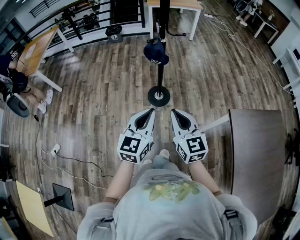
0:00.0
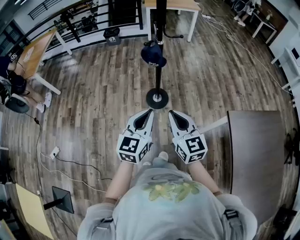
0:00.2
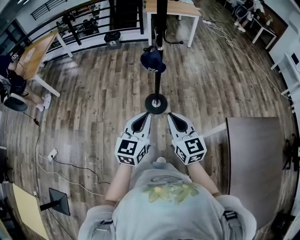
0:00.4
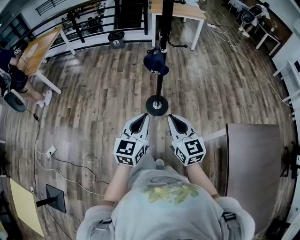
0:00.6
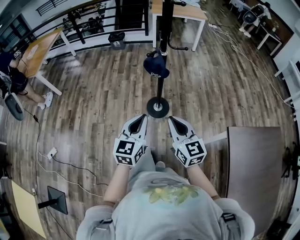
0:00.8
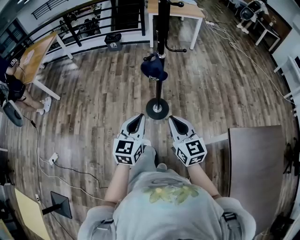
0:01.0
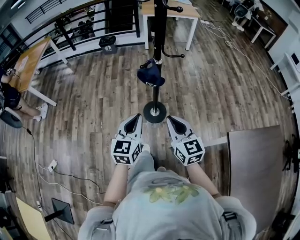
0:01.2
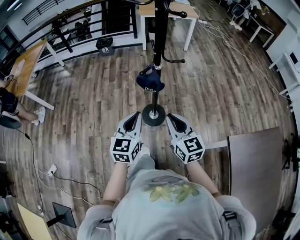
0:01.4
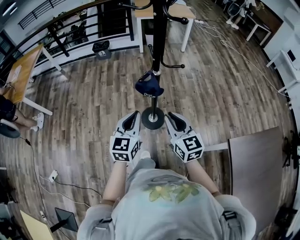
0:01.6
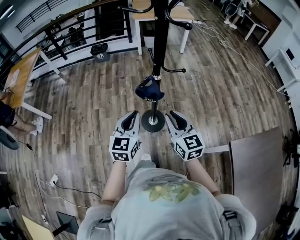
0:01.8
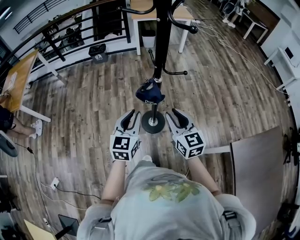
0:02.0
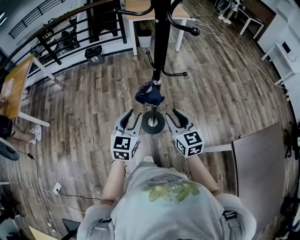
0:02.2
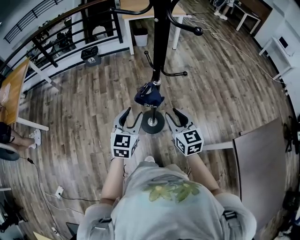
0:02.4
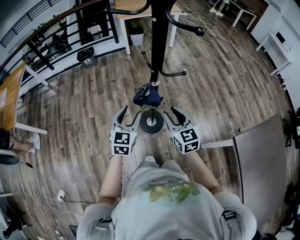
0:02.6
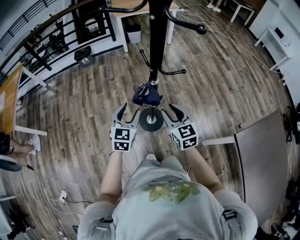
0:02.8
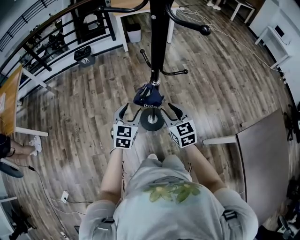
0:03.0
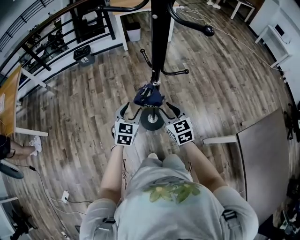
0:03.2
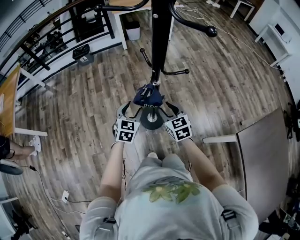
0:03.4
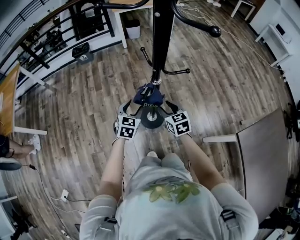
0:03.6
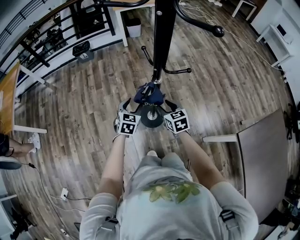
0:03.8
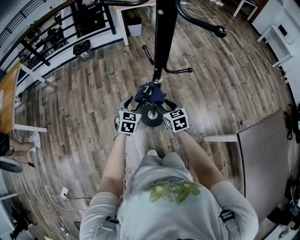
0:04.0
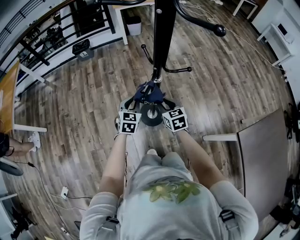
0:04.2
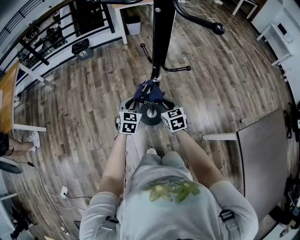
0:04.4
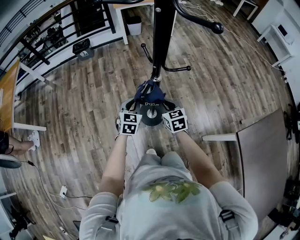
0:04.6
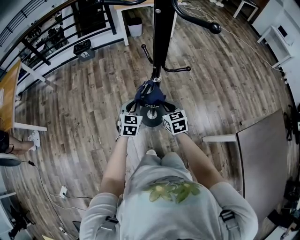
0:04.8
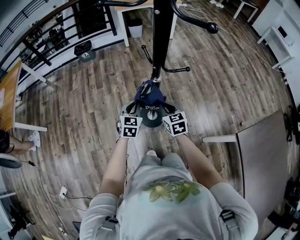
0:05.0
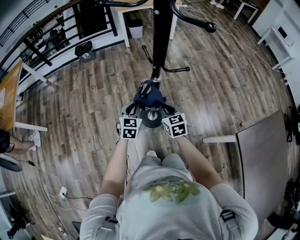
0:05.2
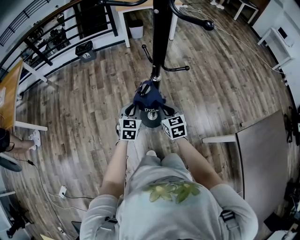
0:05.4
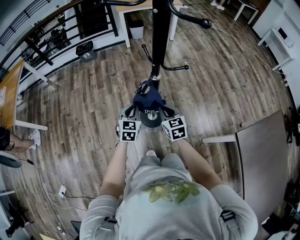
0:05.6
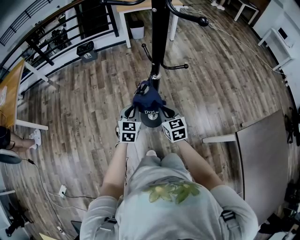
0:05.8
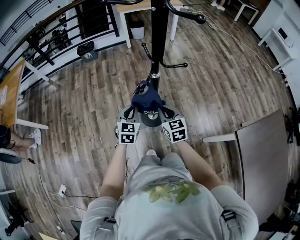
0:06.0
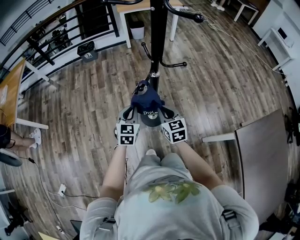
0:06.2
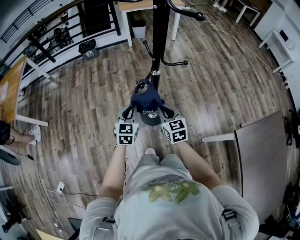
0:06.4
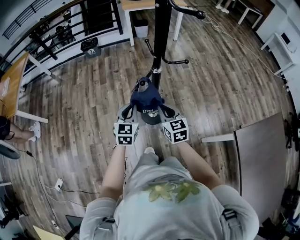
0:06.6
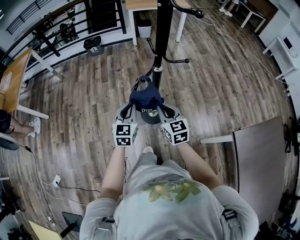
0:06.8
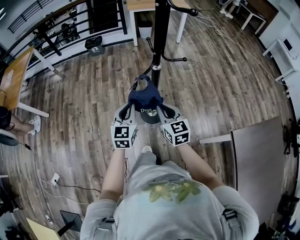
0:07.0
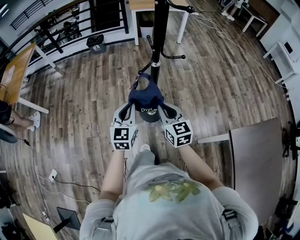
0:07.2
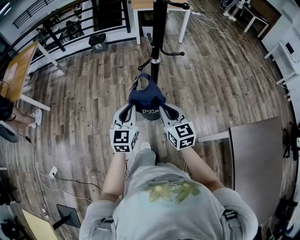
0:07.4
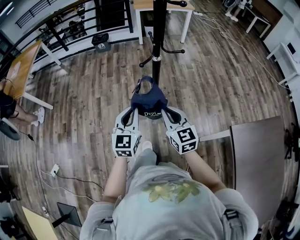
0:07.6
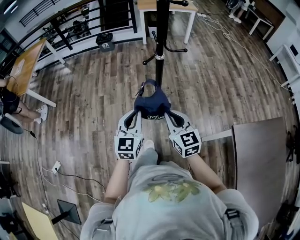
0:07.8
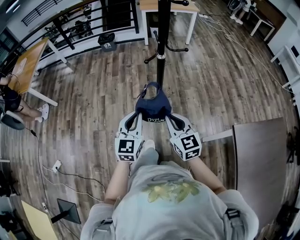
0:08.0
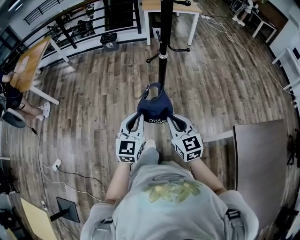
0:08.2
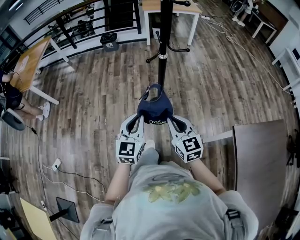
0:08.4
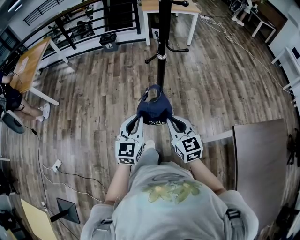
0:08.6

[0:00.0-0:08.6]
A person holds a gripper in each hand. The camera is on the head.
0:00.0 to 0:01.4: The grippers both shift forward by about 20 cm.
0:01.4 to 0:02.8: The two grippers go approximately 20 cm forward and downward. The left gripper opens its fingers; the right gripper opens.
0:02.8 to 0:04.4: The grippers both shift downward and forward by approximately 10 cm. The left gripper closes up.
0:04.4 to 0:05.8: The grippers both shift backward by roughly 5 cm.
0:05.8 to 0:07.2: The left gripper shifts some 15 cm backward and upward. The right gripper moves upward and backward, about 15 cm.
0:07.2 to 0:08.6: The two grippers go some 15 cm backward.

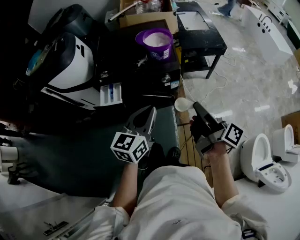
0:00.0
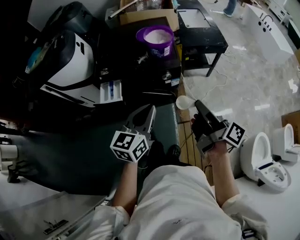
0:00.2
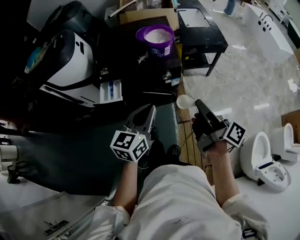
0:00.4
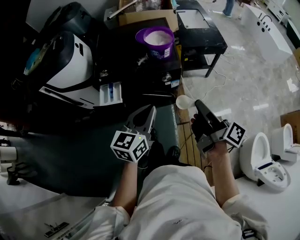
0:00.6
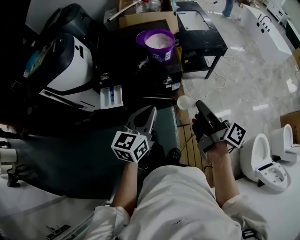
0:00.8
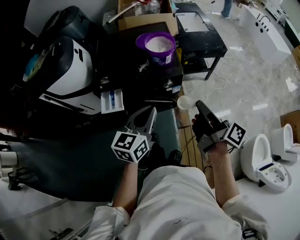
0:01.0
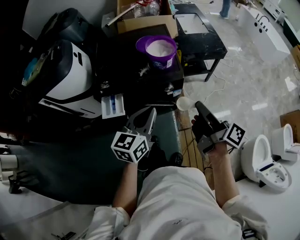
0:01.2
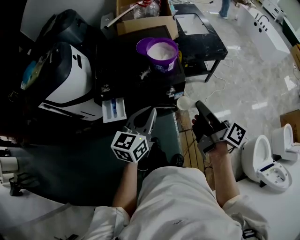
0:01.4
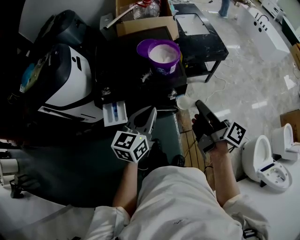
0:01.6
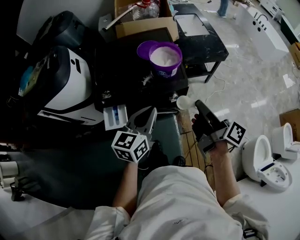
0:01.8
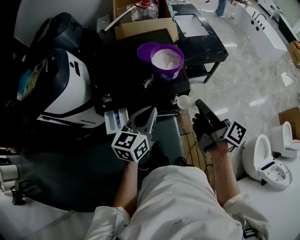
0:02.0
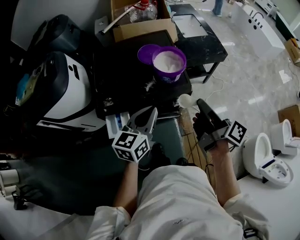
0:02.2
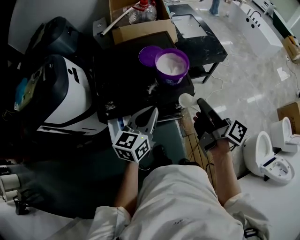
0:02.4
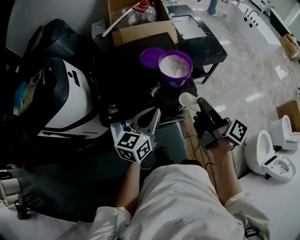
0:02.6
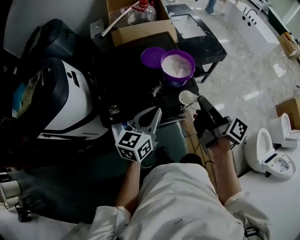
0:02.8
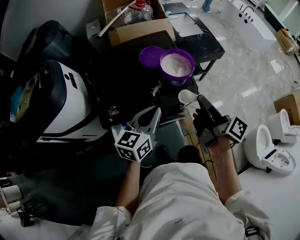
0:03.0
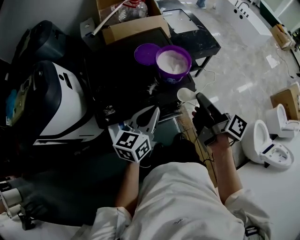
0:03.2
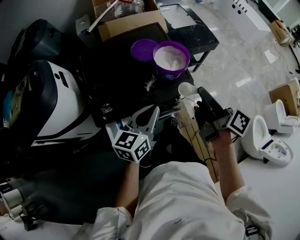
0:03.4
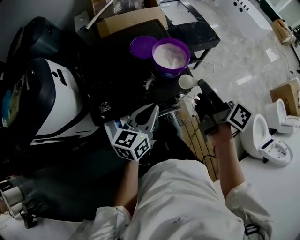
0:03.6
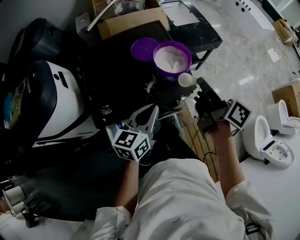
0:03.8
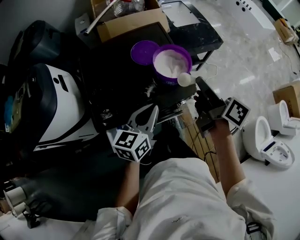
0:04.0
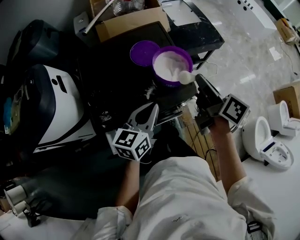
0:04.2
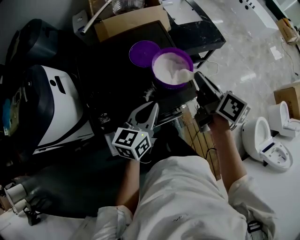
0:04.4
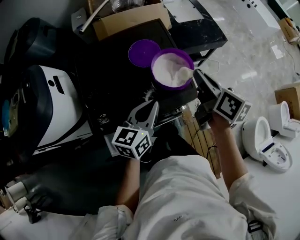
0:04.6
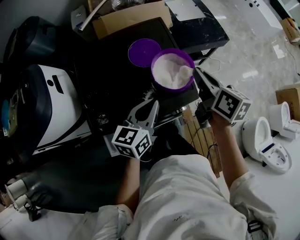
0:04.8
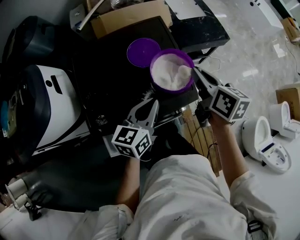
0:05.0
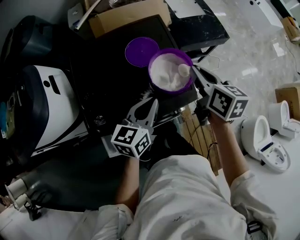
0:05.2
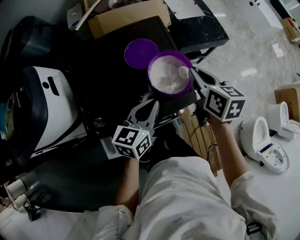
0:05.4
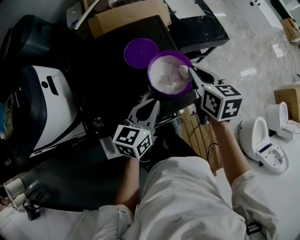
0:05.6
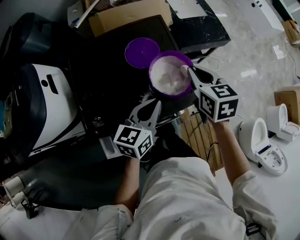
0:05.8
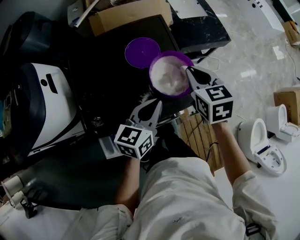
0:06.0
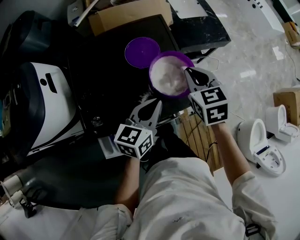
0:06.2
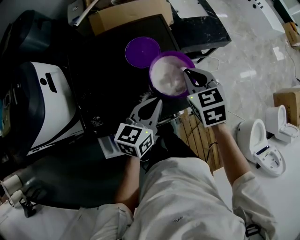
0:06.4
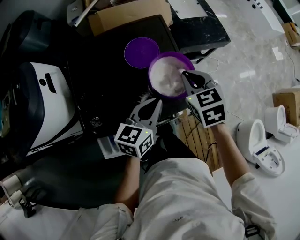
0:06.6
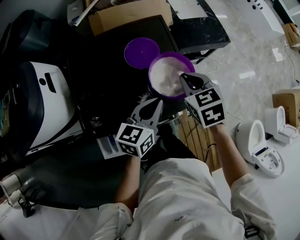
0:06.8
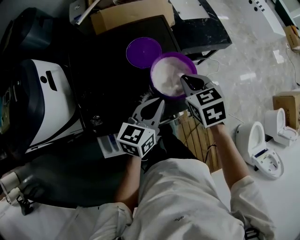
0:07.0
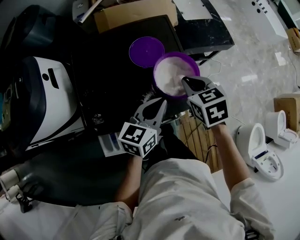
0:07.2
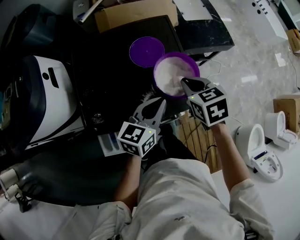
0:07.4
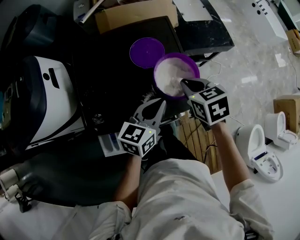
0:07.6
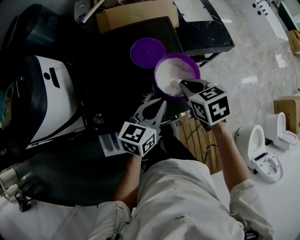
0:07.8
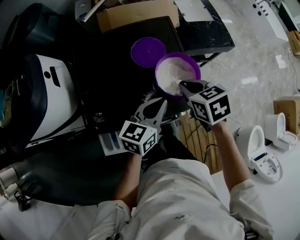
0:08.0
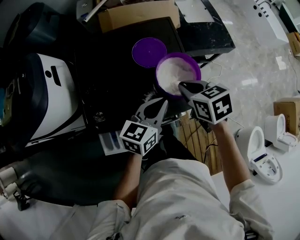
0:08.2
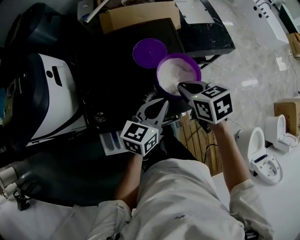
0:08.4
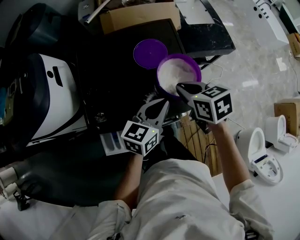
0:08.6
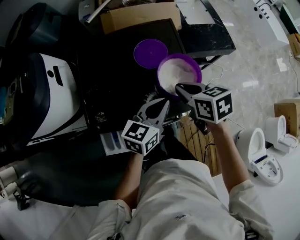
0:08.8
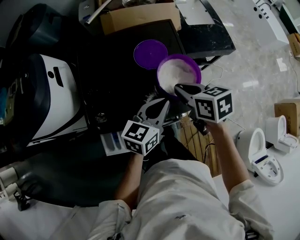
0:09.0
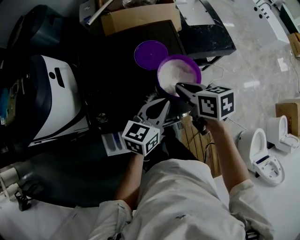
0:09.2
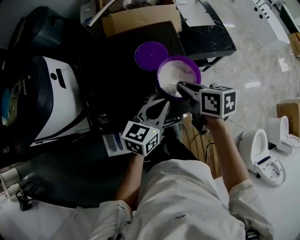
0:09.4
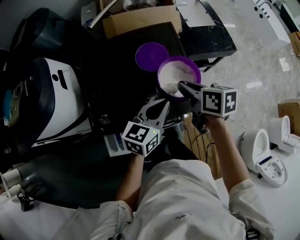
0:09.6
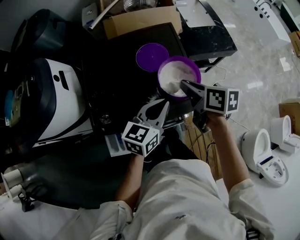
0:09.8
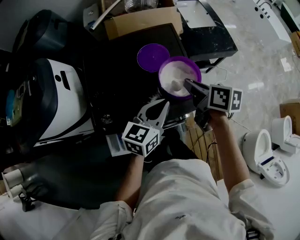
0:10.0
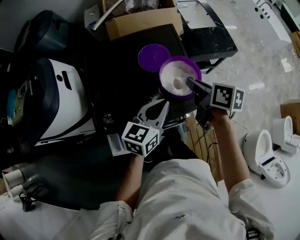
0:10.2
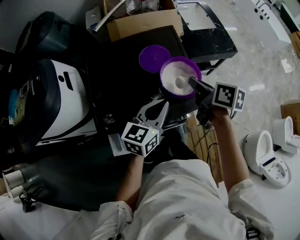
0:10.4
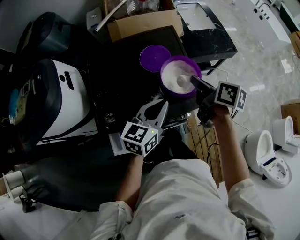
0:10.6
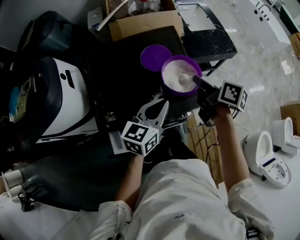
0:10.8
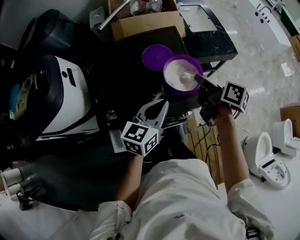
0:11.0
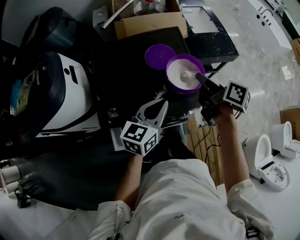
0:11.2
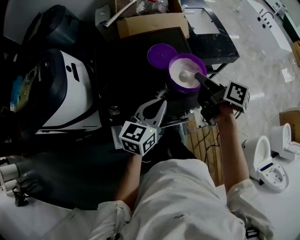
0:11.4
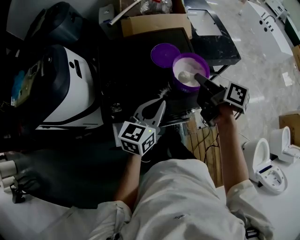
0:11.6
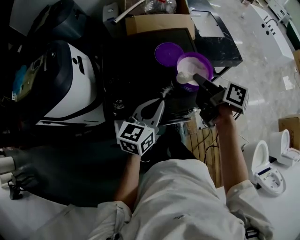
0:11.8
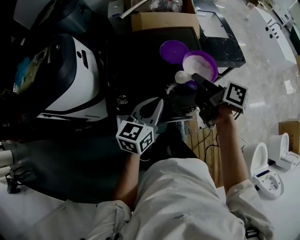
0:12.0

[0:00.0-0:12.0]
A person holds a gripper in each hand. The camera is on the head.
0:00.0 to 0:01.6: The two grippers go some 10 cm forward.
0:01.6 to 0:03.0: The right gripper goes about 10 cm to the left and forward; the left gripper travels forward and to the left by approximately 10 cm.
0:03.0 to 0:04.4: The right gripper shifts approximately 15 cm forward, and swivels roughly 30 degrees. The left gripper heads forward, covering roughly 10 cm.
0:04.4 to 0:06.0: The right gripper shifts approximately 10 cm forward and downward, and rolls counterclockwise, seen from behind, by about 50 degrees. The left gripper moves forward, some 5 cm.
0:06.0 to 0:07.6: The right gripper shifts by roughly 5 cm.
0:07.6 to 0:09.0: There are only small adjustments of the grippers.
0:09.0 to 0:10.4: The right gripper travels to the right by approximately 5 cm, and swivels some 30 degrees.
0:10.4 to 0:12.0: The right gripper goes roughly 10 cm to the left, backward and upward, while the left gripper moves to the left and backward, some 10 cm.

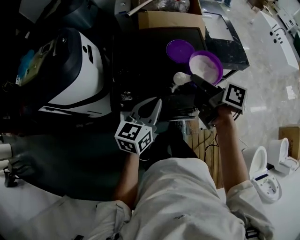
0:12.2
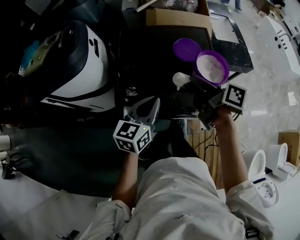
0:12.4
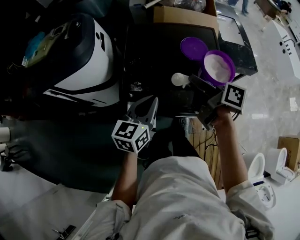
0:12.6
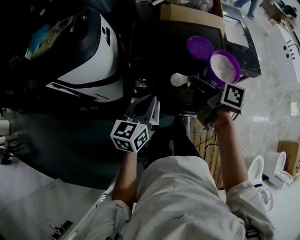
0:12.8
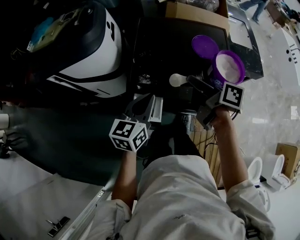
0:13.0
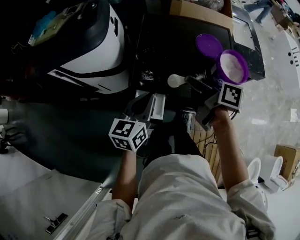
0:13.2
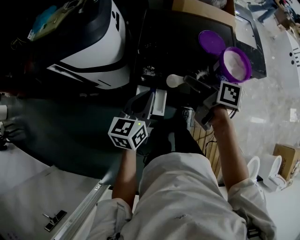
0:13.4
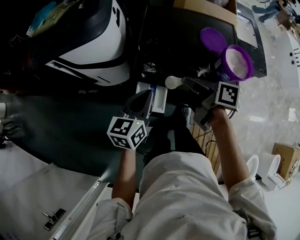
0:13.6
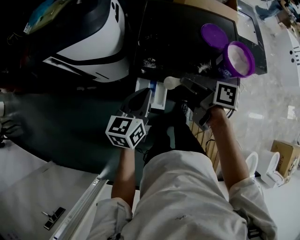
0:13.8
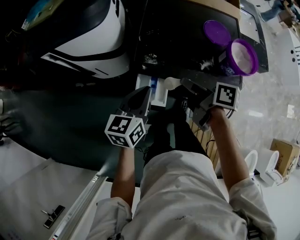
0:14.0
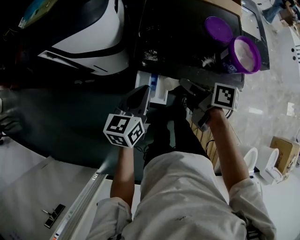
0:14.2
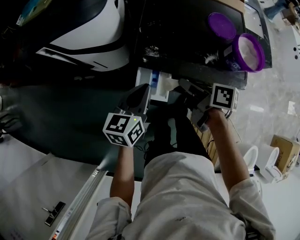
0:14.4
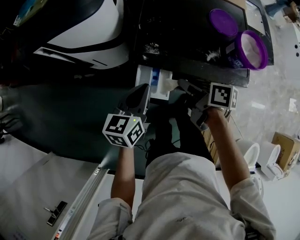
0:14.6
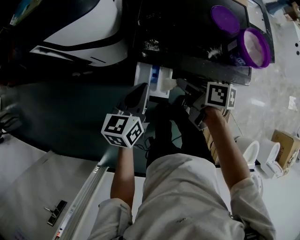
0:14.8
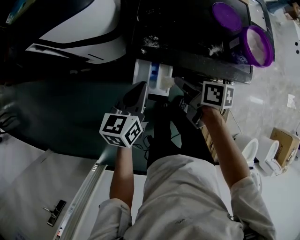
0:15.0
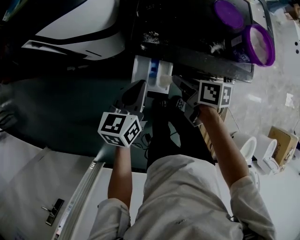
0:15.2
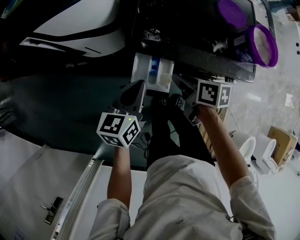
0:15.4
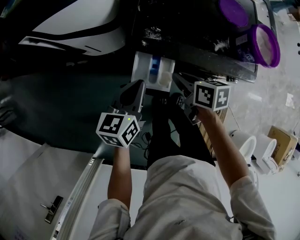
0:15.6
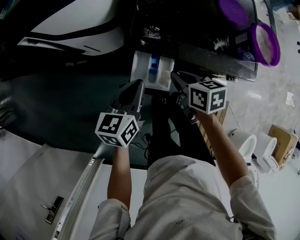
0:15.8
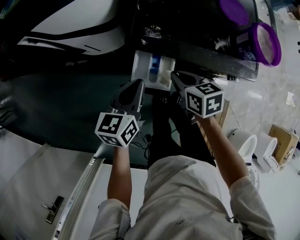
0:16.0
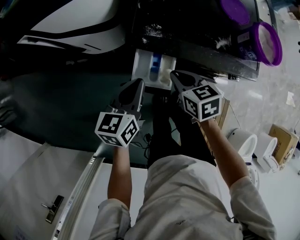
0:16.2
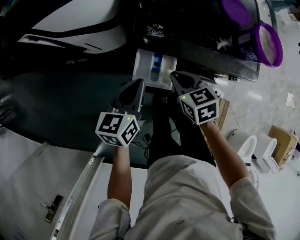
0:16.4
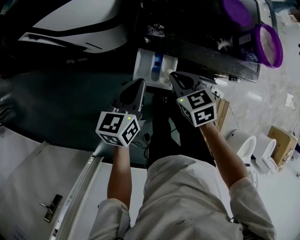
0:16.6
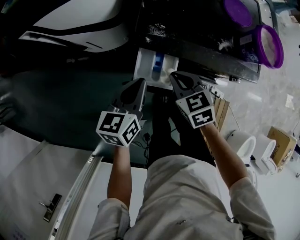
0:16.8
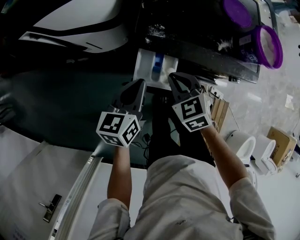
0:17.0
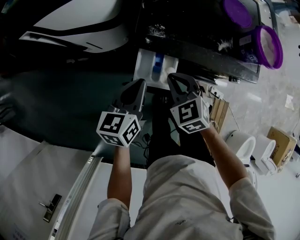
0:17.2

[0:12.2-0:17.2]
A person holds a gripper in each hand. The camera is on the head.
0:12.2 to 0:13.8: The right gripper shifts roughly 20 cm to the left and downward, and rotates roughly 20 degrees. The left gripper moves to the left, some 15 cm.
0:13.8 to 0:15.6: The left gripper travels downward by roughly 10 cm; the right gripper goes about 15 cm downward, and rotates some 30 degrees.
0:15.6 to 0:17.2: The right gripper twists some 60 degrees counterclockwise, seen from behind.
